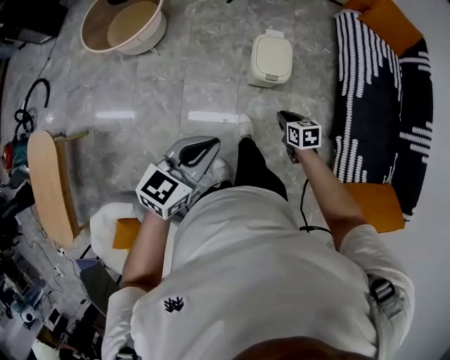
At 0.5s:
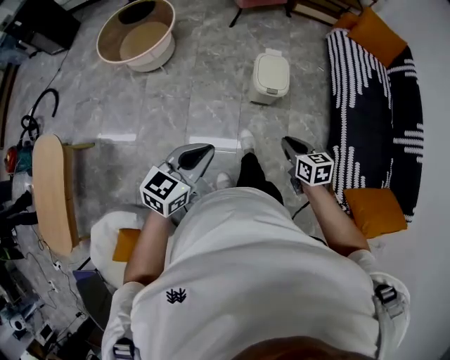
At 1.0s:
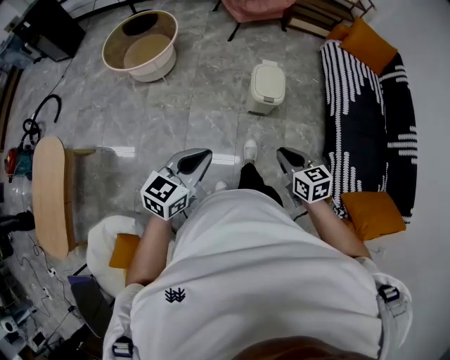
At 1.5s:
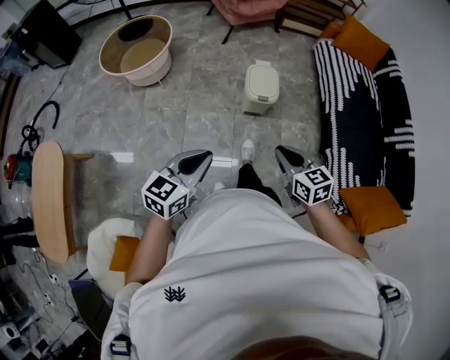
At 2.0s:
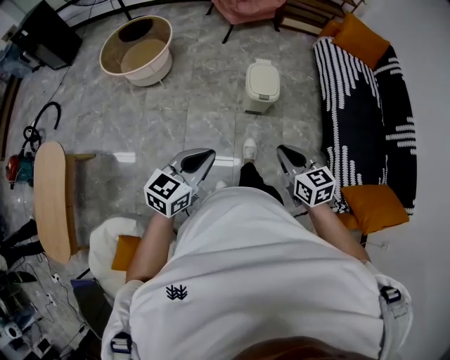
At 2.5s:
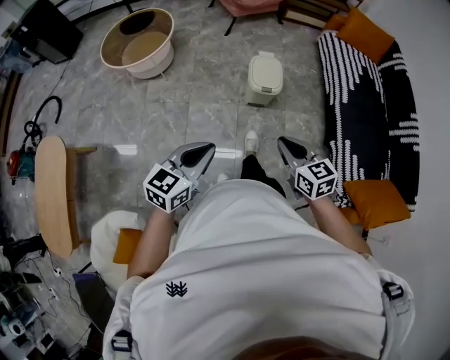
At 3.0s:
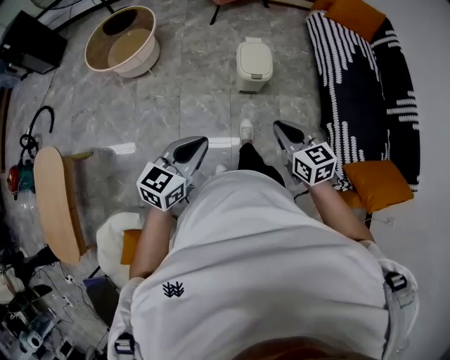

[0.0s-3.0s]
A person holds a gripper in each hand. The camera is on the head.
0.0s to 1.5s: The left gripper heads backward, covering roughly 15 cm. The right gripper moves upward and backward, about 30 cm, and swivels approximately 30 degrees.
1.5s to 3.0s: The grippers stay close to where they were, moving slightly.

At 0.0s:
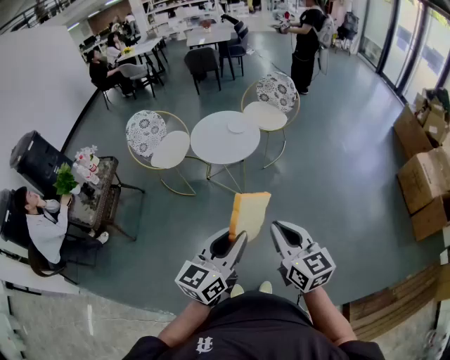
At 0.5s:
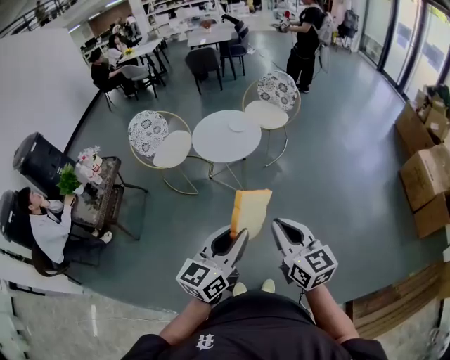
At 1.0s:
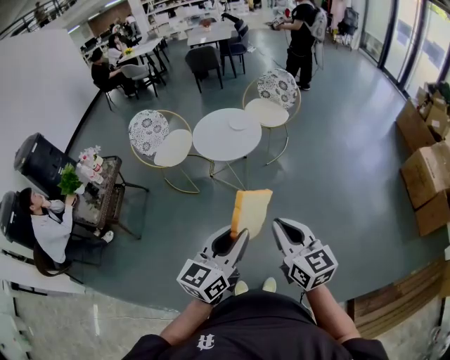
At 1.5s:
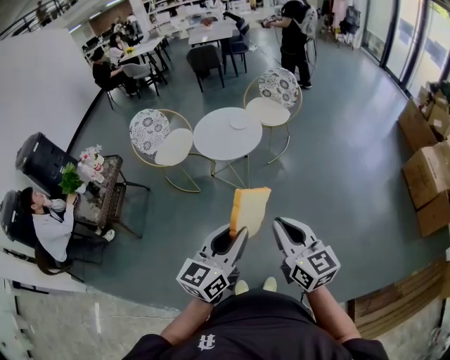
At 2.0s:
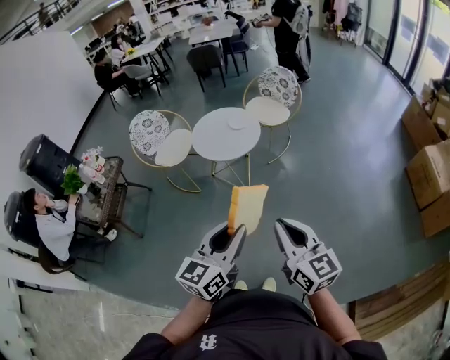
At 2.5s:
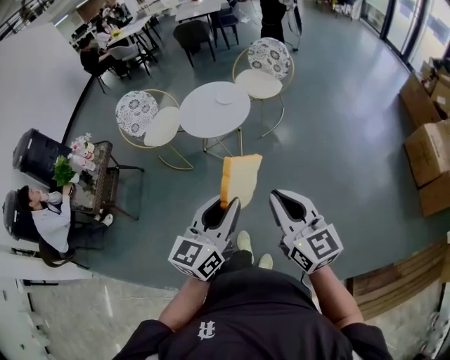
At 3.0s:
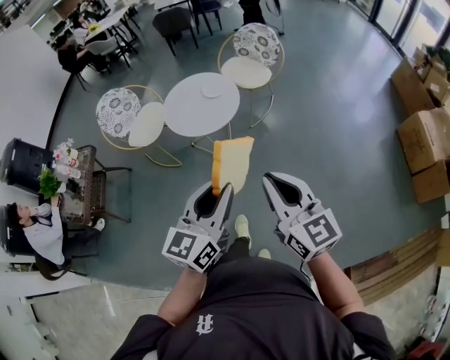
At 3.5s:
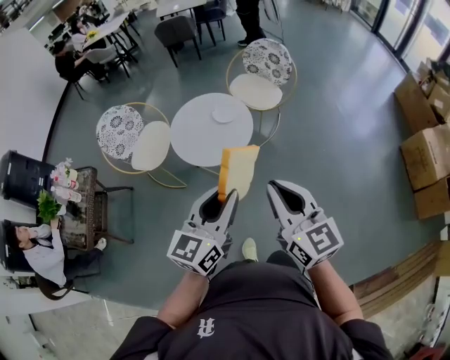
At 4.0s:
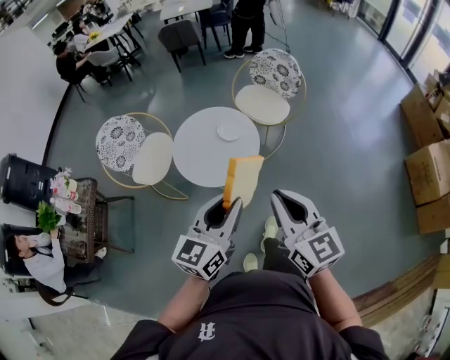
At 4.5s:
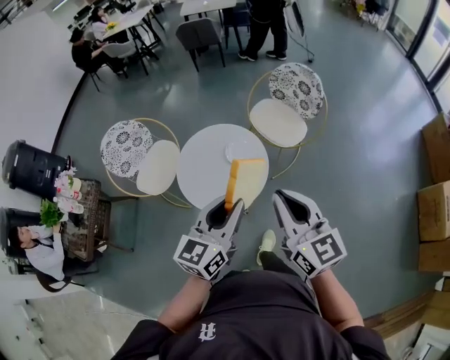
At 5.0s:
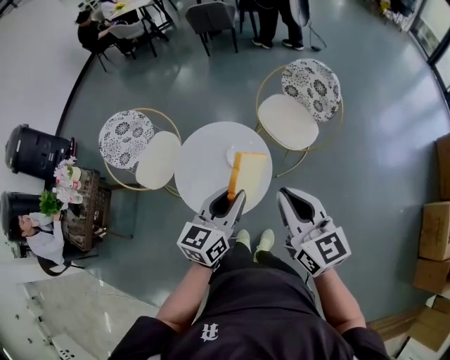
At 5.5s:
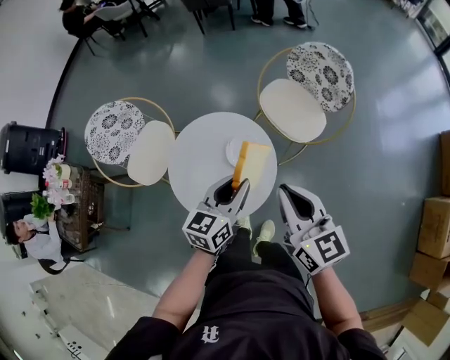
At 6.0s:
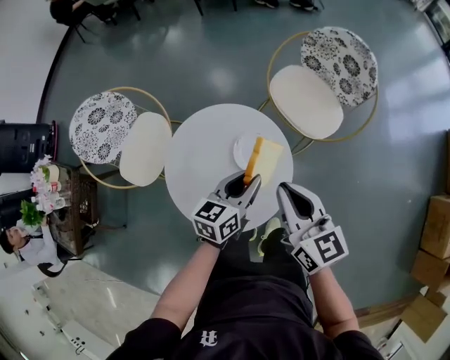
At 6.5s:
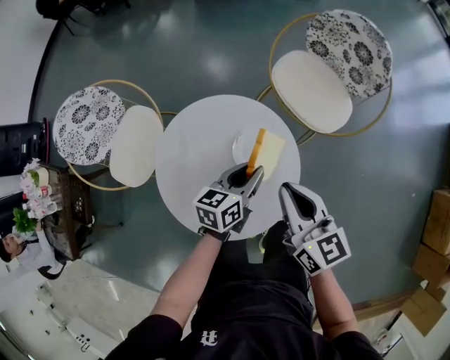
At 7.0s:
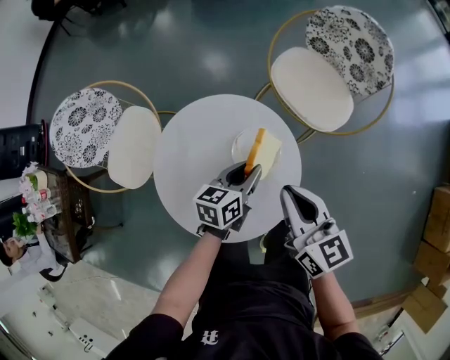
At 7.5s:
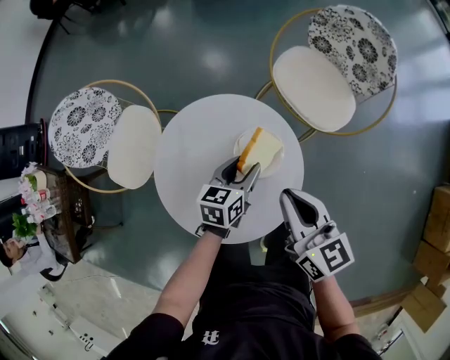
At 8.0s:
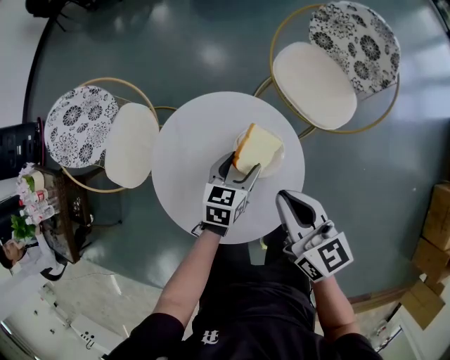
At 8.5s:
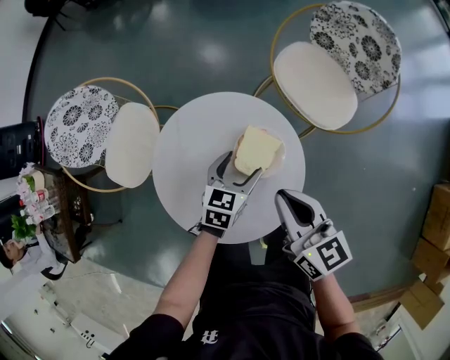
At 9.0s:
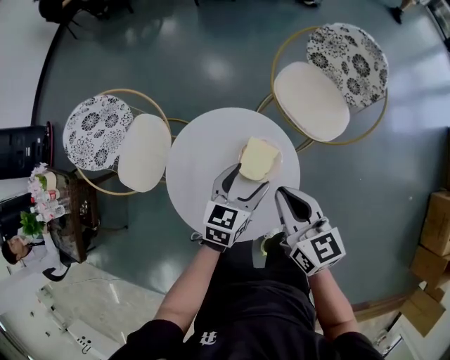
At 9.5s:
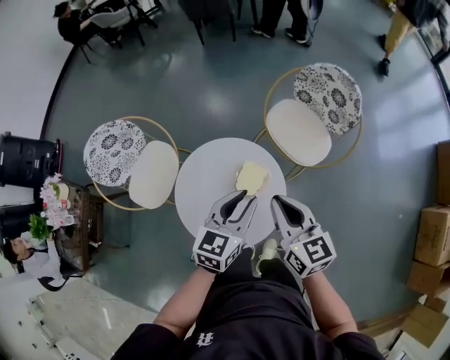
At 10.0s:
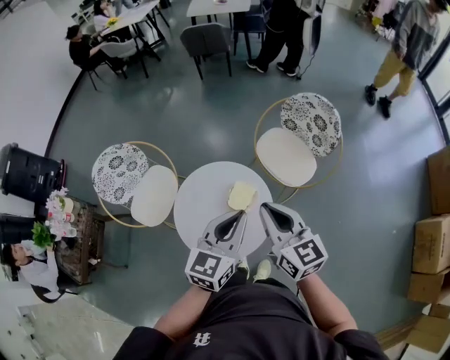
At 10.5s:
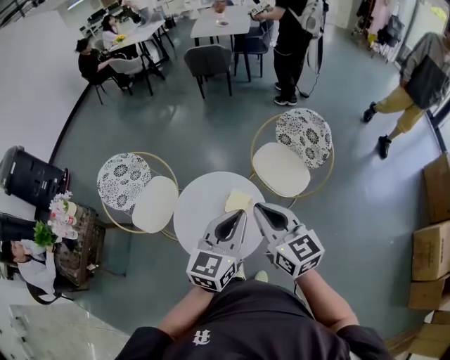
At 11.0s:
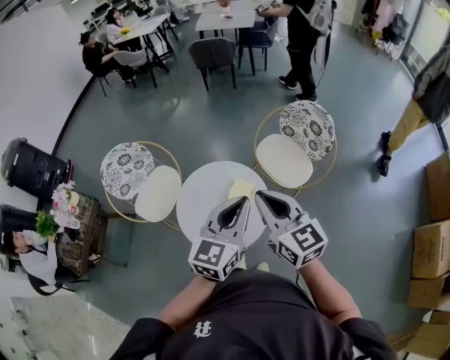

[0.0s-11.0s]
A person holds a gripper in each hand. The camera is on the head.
0.0s to 2.0s: The right gripper travels to the right by about 5 cm.
2.0s to 3.5s: The grippers both shift forward by roughly 30 cm.
3.5s to 5.5s: The pair of grippers is taken forward, approximately 40 cm. The left gripper shifts roughly 20 cm downward.
5.5s to 7.5s: The right gripper shifts approximately 20 cm downward; the left gripper travels downward and forward by about 30 cm.
7.5s to 9.0s: The left gripper heads upward, covering roughly 10 cm, and opens up.
9.0s to 11.0s: The two grippers go approximately 30 cm upward. The left gripper swivels approximately 30 degrees, and closes; the right gripper changes its angle by approximately 20 degrees.

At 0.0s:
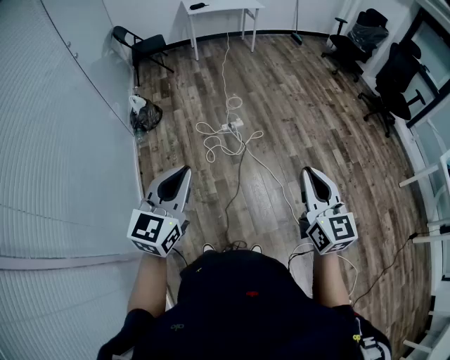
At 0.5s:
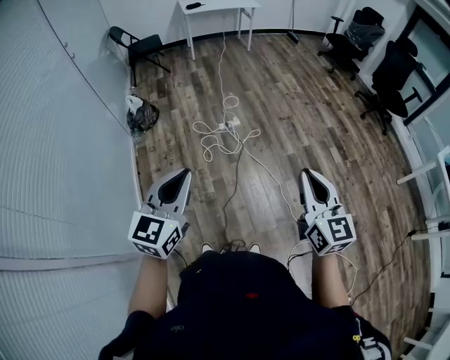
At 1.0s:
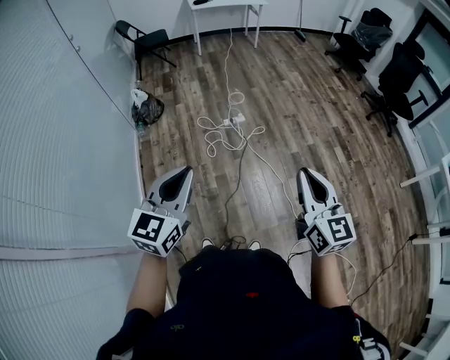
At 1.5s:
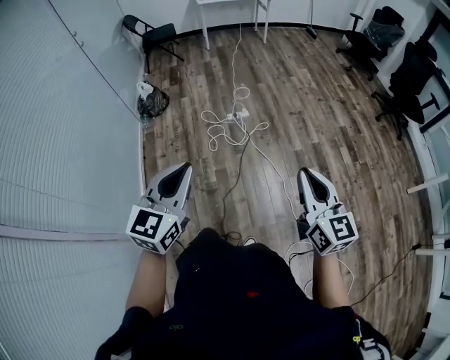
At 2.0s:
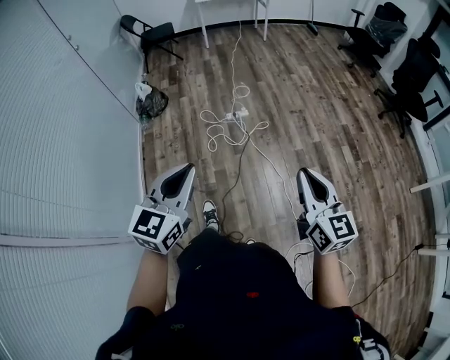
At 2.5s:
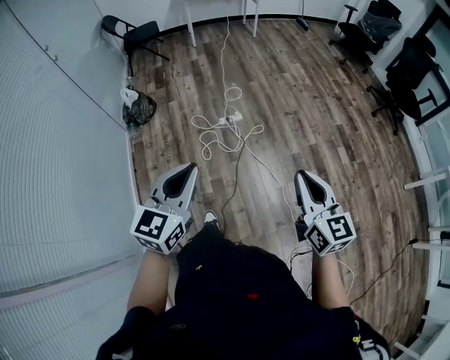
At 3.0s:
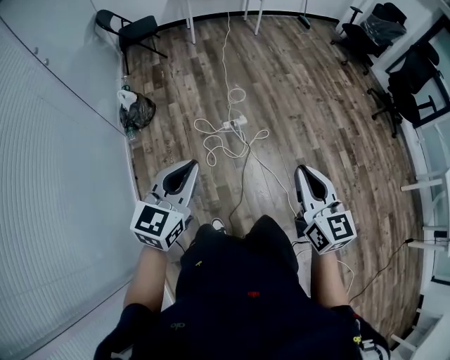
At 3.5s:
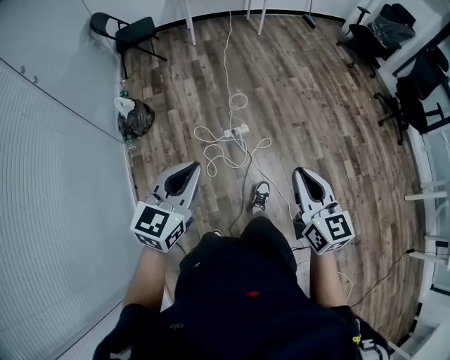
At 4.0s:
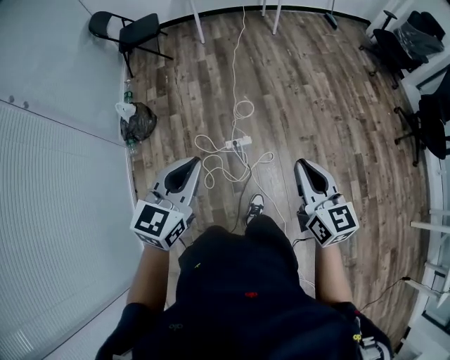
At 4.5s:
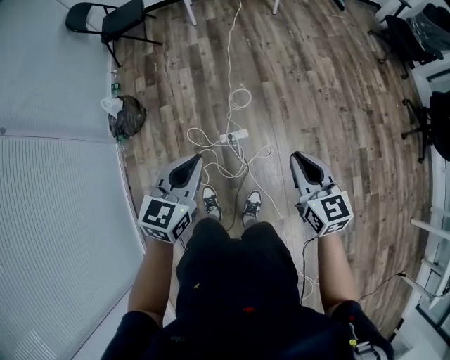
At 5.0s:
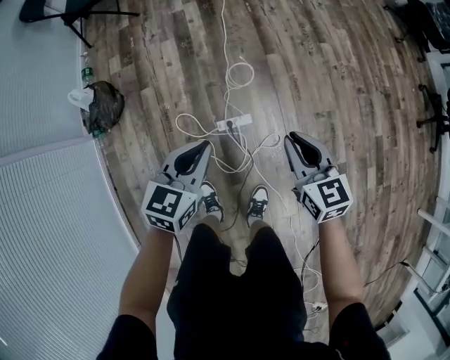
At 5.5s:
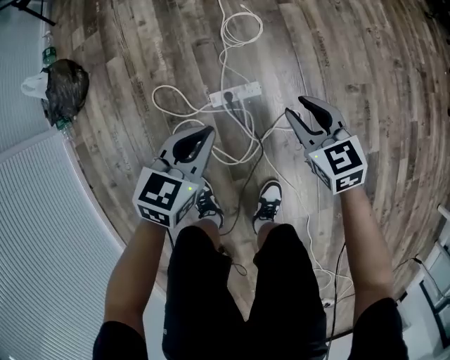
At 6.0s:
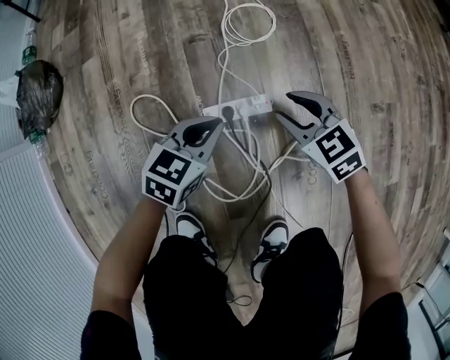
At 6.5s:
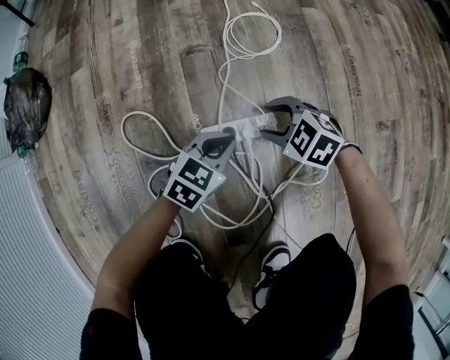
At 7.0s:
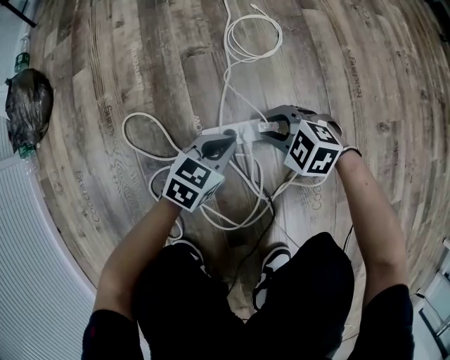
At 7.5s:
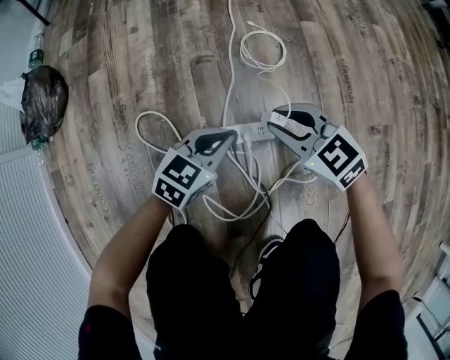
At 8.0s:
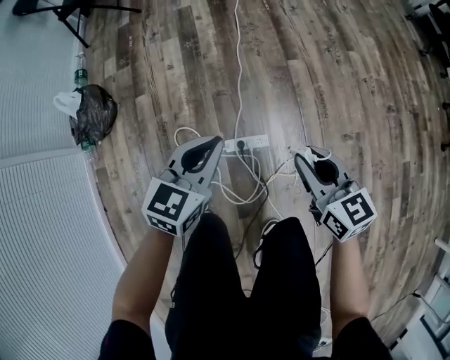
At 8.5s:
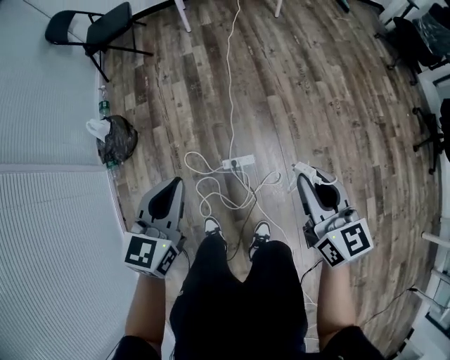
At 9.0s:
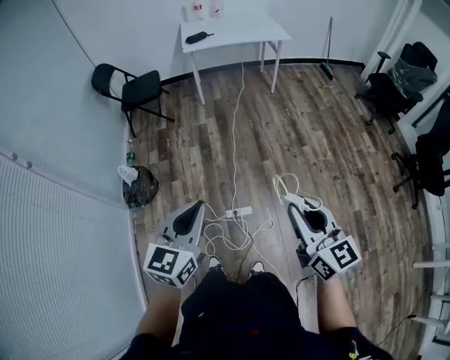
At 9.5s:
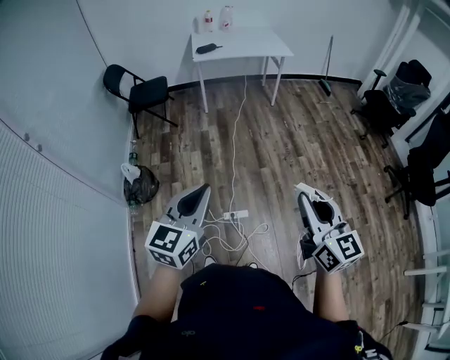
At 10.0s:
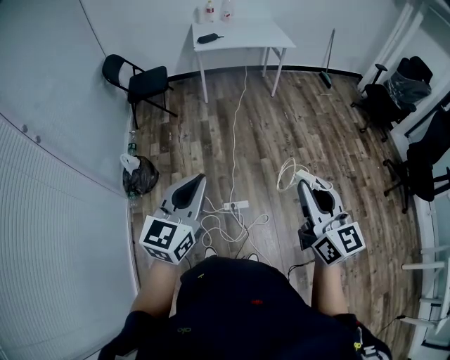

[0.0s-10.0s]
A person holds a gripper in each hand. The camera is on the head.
0.0s to 2.0s: The right gripper moves to the right and downward, about 10 cm. The left gripper goes some 10 cm to the right.
2.0s to 4.0s: The two grippers travel together, forward, approximately 60 cm.
4.0s to 6.0s: The two grippers go about 90 cm downward. The right gripper angles its fingers downward, by about 30 degrees, and opens; the left gripper swivels about 30 degrees.
6.0s to 8.0s: Both grippers move upward, roughly 35 cm. The right gripper swivels approximately 30 degrees.
8.0s to 10.0s: Both grippers travel together upward, some 70 cm. The left gripper changes its angle by some 30 degrees. Meanwhile the right gripper turns by roughly 30 degrees.

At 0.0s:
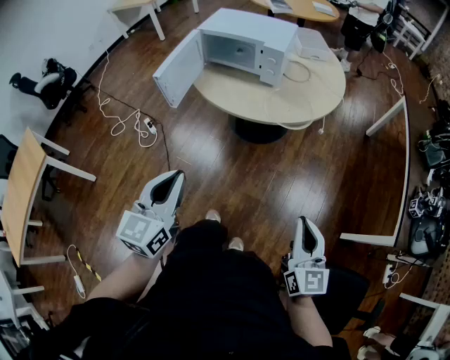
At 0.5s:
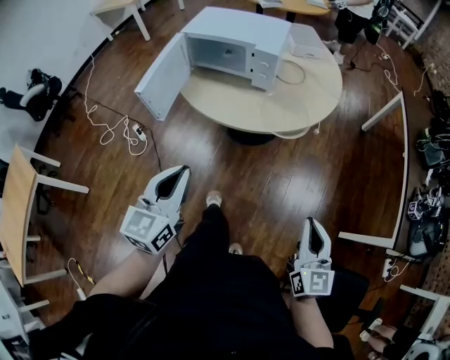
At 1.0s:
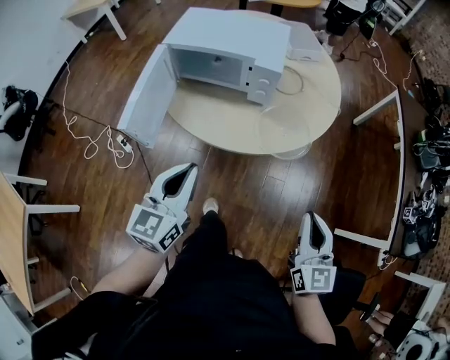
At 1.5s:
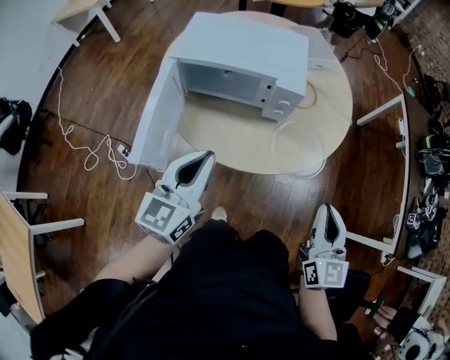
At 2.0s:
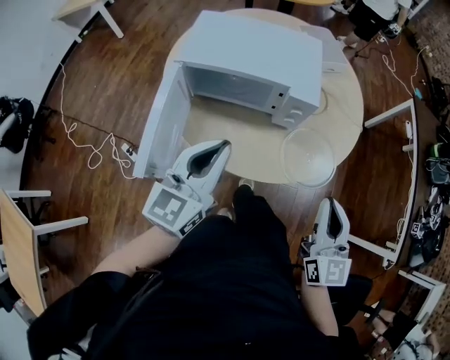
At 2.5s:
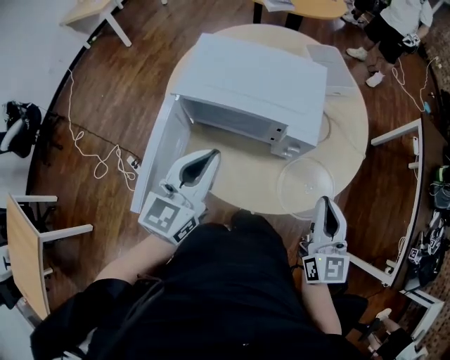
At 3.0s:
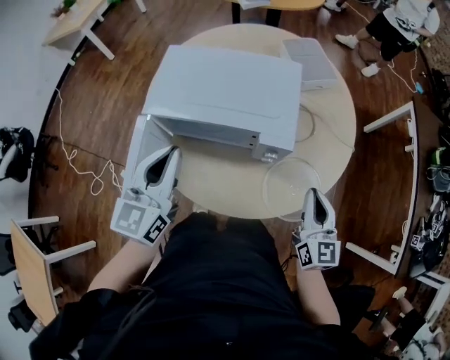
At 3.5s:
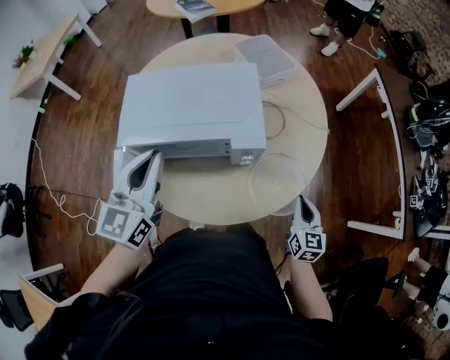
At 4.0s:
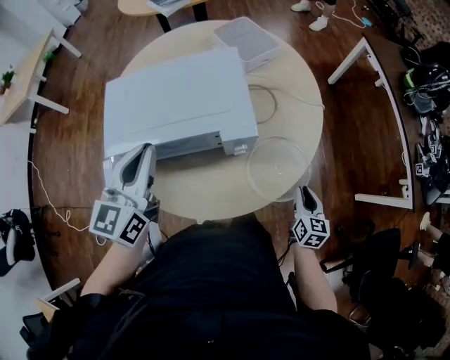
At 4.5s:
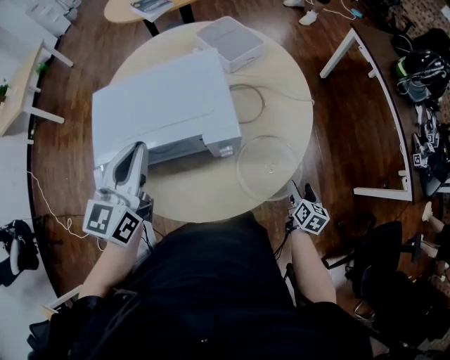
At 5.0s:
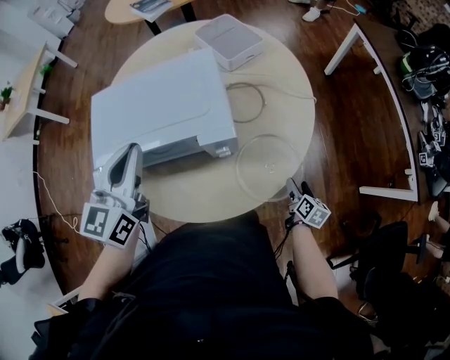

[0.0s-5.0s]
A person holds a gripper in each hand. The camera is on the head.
0.0s to 2.5s: The left gripper changes place by approximately 50 cm.
2.5s to 5.0s: The left gripper shifts by approximately 10 cm.
